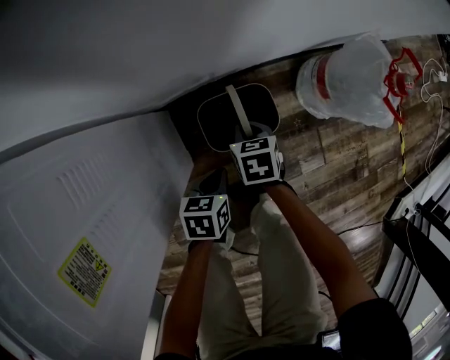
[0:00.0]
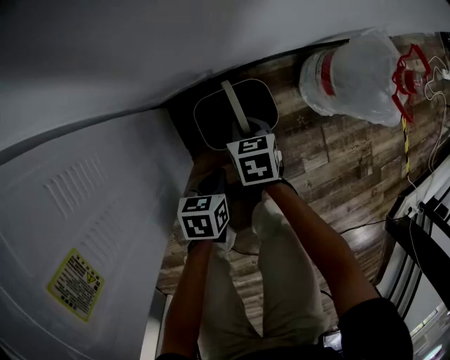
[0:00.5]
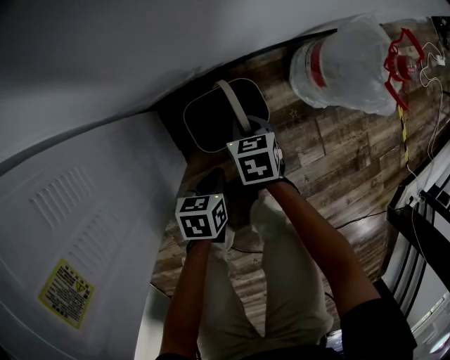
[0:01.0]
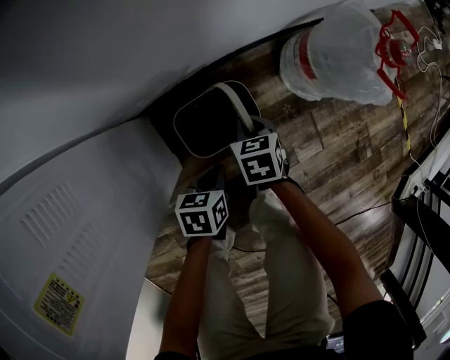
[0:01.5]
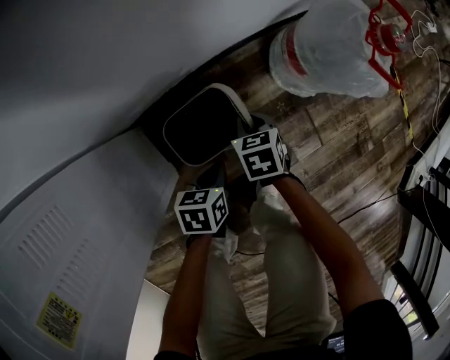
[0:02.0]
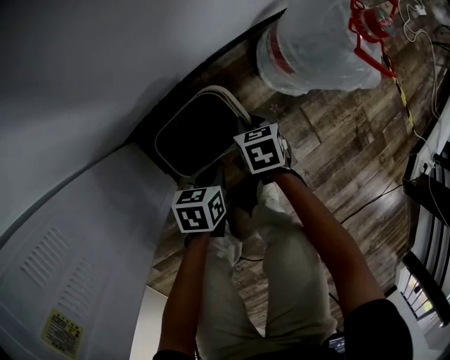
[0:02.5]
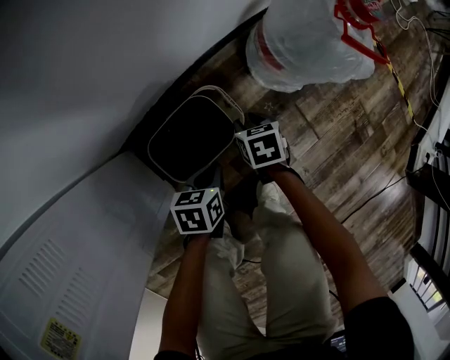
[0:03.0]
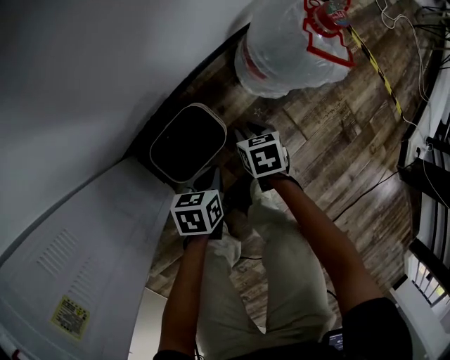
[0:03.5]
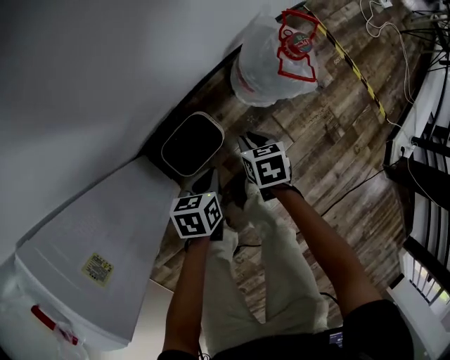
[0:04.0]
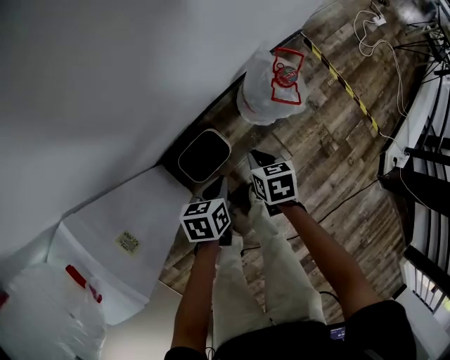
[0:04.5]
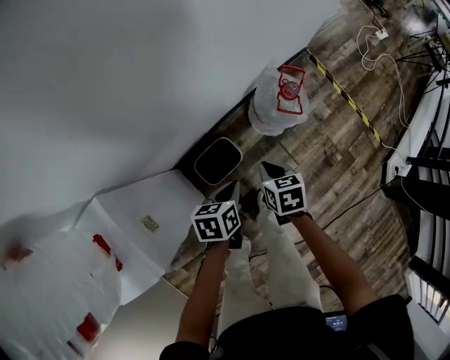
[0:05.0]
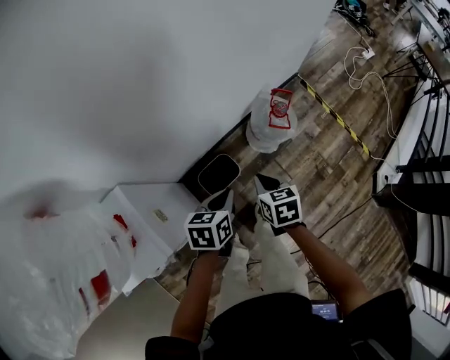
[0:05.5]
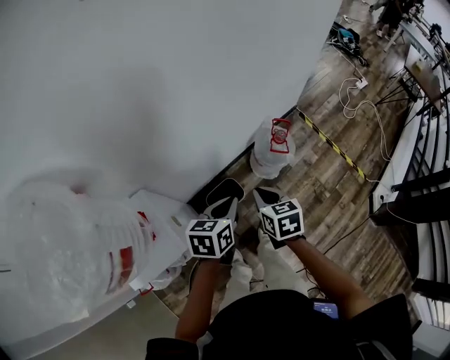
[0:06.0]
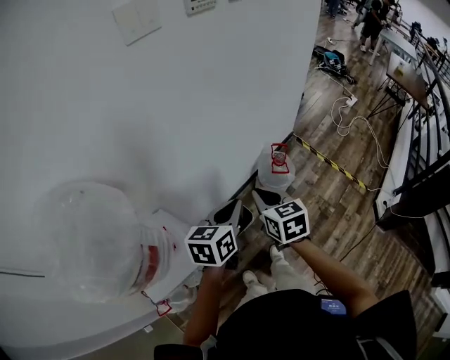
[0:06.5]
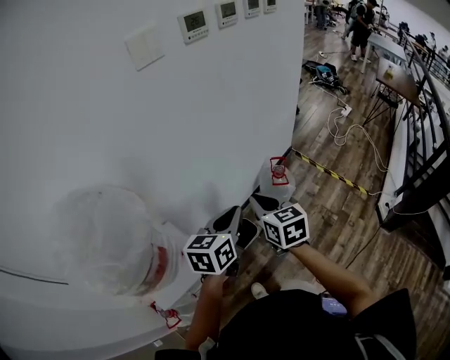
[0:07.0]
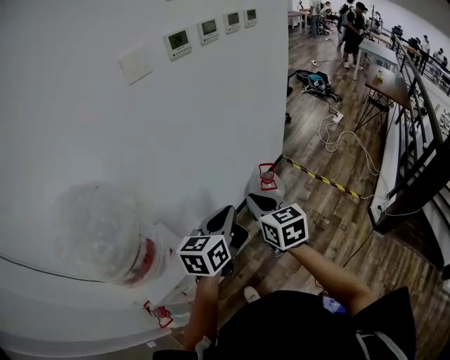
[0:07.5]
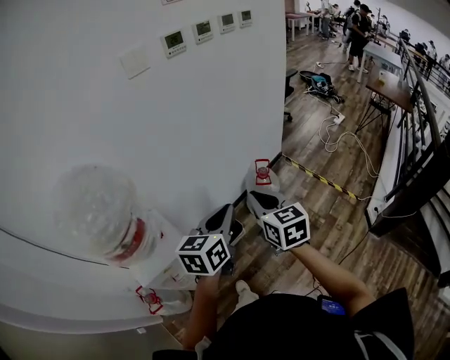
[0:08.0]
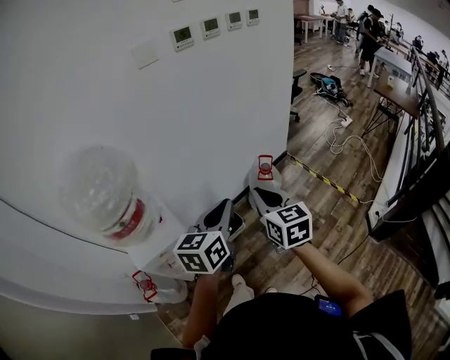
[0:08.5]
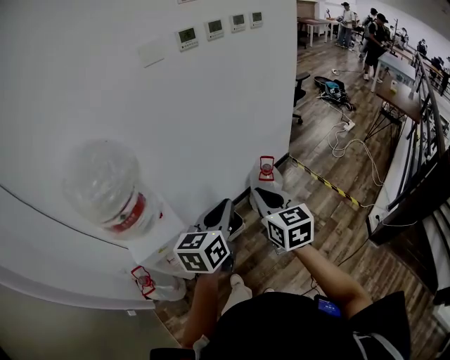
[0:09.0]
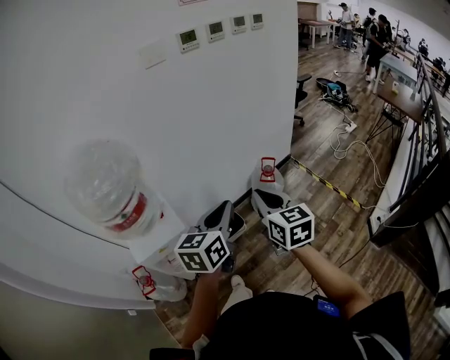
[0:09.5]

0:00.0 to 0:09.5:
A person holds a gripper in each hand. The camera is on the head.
0:00.0 to 0:02.0: The two grippers go roughly 10 cm to the right and downward.
0:02.0 to 0:04.0: The right gripper moves upward and to the right, roughly 20 cm, while the left gripper heads upward, covering roughly 15 cm.
0:04.0 to 0:05.5: Both grippers travel together upward, roughly 35 cm.
0:05.5 to 0:07.5: Both grippers move upward, some 35 cm. The left gripper changes its angle by some 30 degrees; the right gripper tips its fingers upward by roughly 30 degrees.
0:07.5 to 0:09.5: Both grippers travel together backward and to the right, about 15 cm.

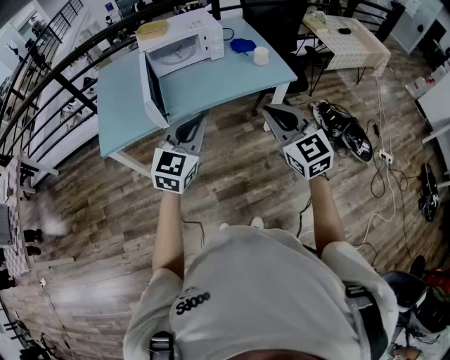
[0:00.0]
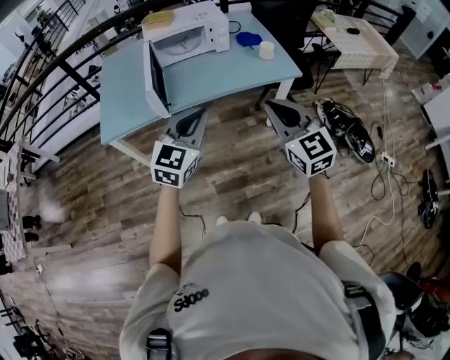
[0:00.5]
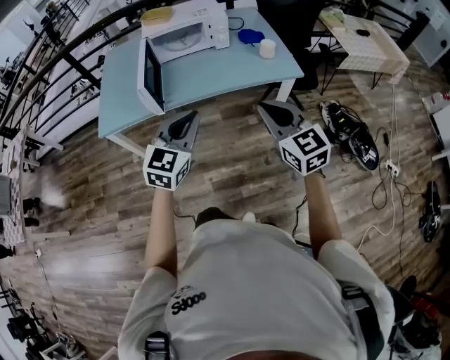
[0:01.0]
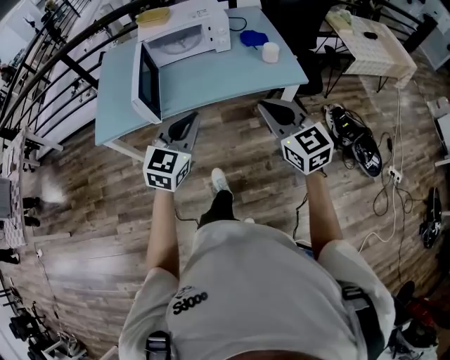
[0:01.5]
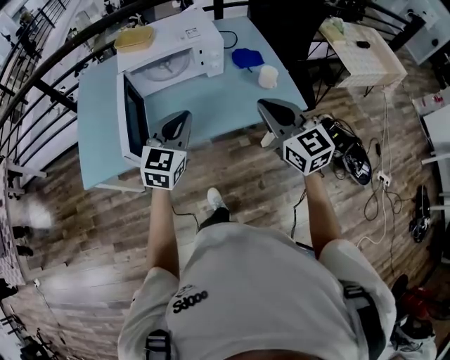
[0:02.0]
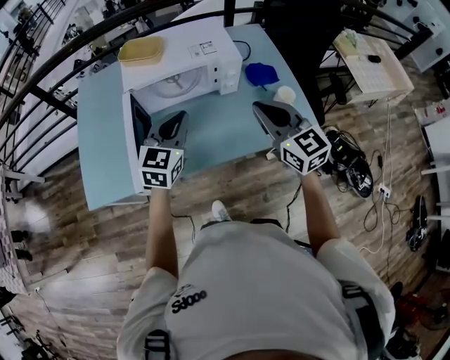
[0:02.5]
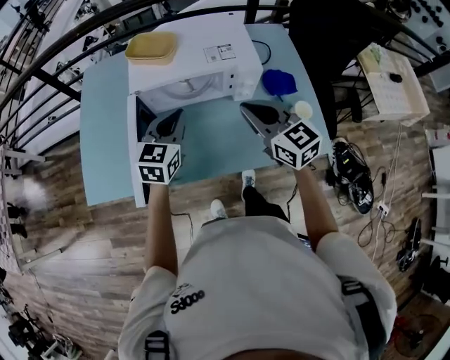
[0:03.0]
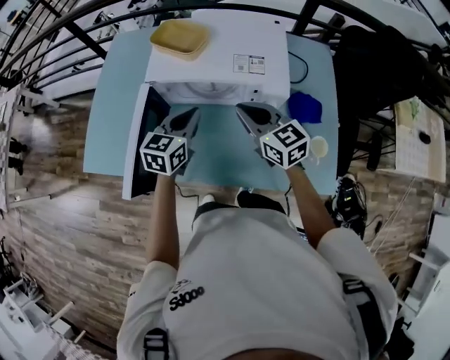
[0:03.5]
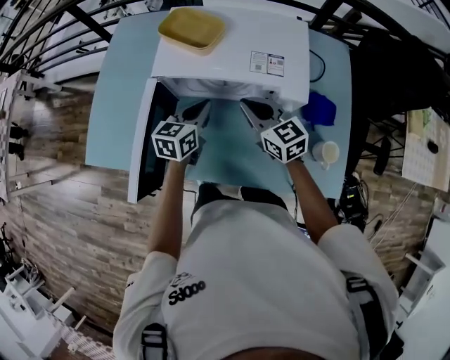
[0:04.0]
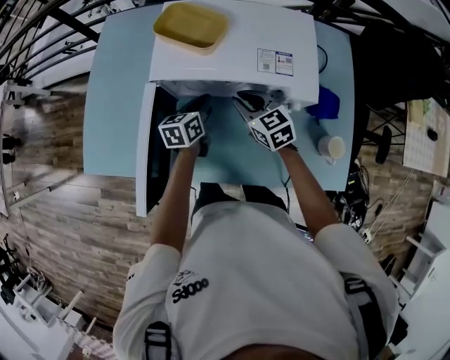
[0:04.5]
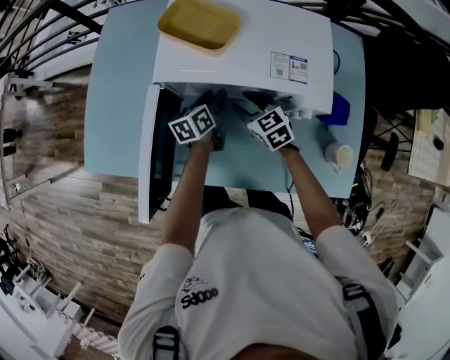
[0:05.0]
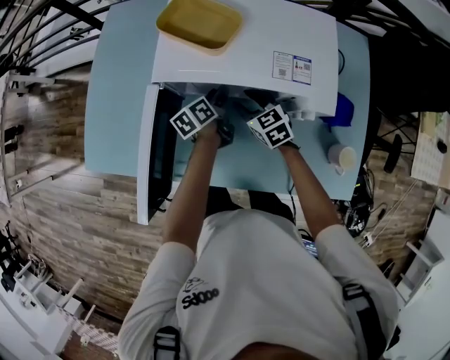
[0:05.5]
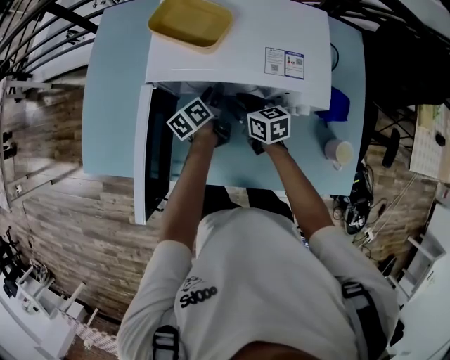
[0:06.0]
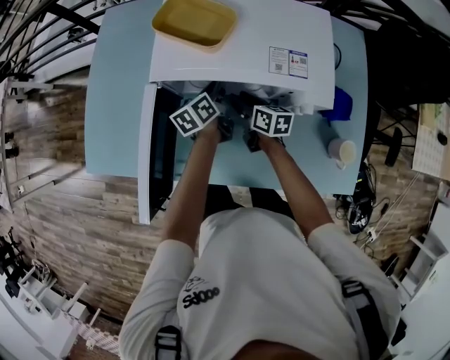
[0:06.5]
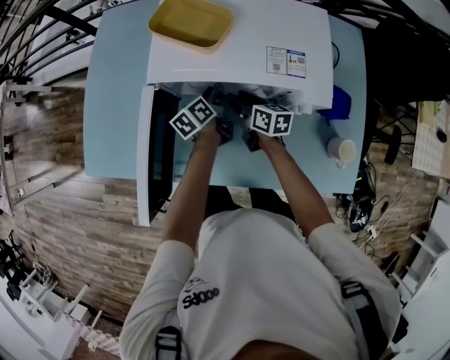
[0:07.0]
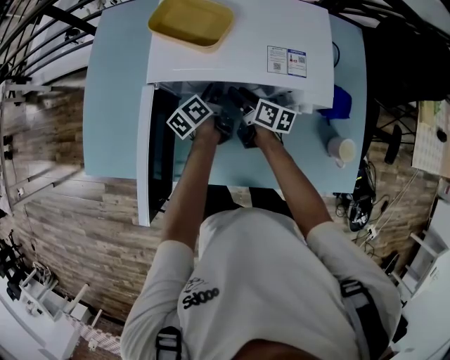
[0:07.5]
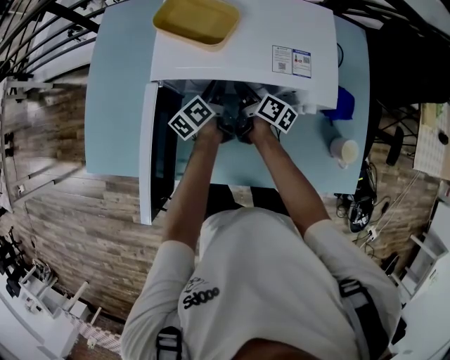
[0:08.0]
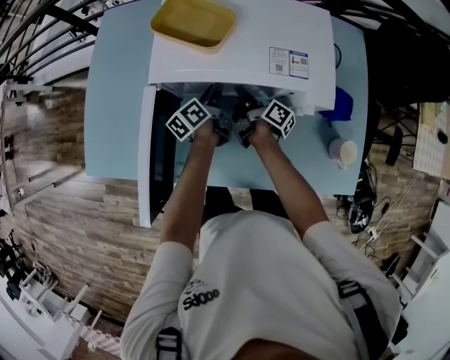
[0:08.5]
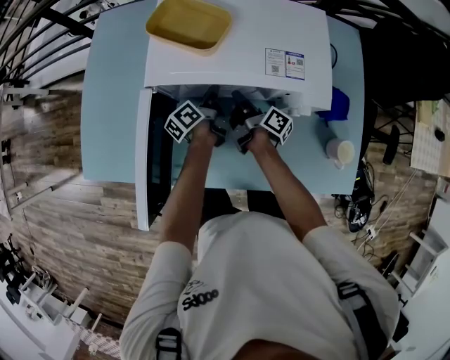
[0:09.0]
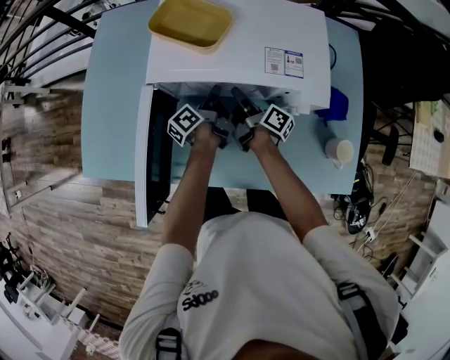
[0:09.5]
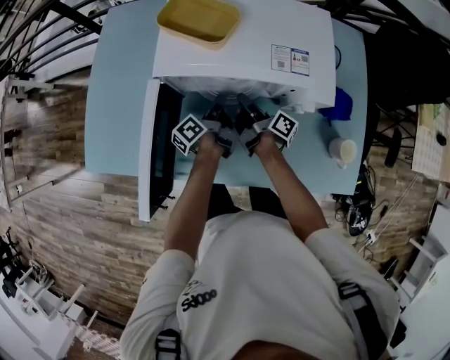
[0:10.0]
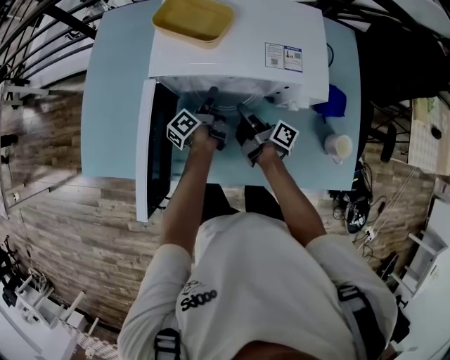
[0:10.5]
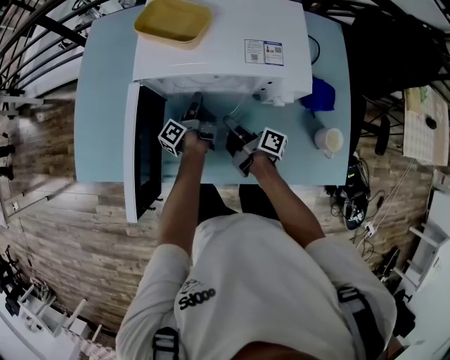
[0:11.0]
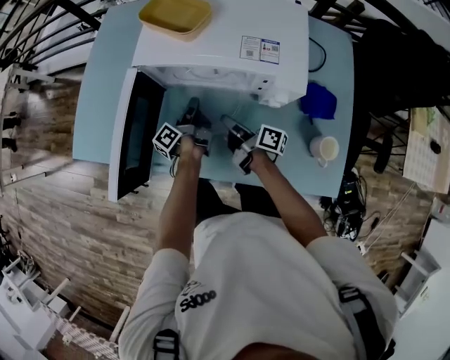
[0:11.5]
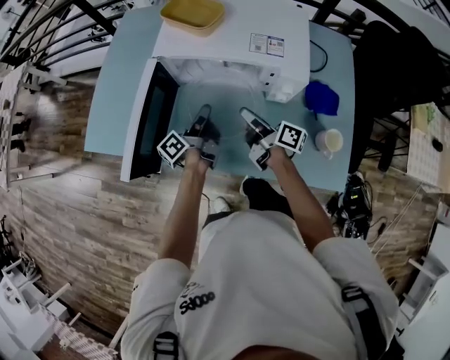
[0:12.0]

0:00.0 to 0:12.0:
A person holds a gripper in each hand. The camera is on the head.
0:00.0 to 0:02.0: The two grippers go about 30 cm forward.
0:02.0 to 0:04.0: The left gripper shifts about 35 cm forward and downward, and changes its angle by some 40 degrees; the right gripper heads forward, covering some 40 cm, and swivels roughly 30 degrees.
0:04.0 to 0:06.0: Both grippers travel together downward and forward, some 15 cm. The left gripper rotates around the line of its fingers by approximately 40 degrees, counterclockwise from behind, and opens up. Meanwhile the right gripper changes its angle by some 30 degrees, and opens.
0:06.0 to 0:08.0: The left gripper closes, then opens again. Meanwhile the right gripper rolls clockwise, seen from behind, by some 40 degrees.
0:08.0 to 0:10.0: The right gripper swivels about 20 degrees. The left gripper is displaced backward by roughly 5 cm, rotates about 20 degrees, and closes up.
0:10.0 to 0:12.0: Both grippers move backward and upward, some 15 cm. The left gripper opens, then closes once more. The right gripper rotates approximately 20 degrees.

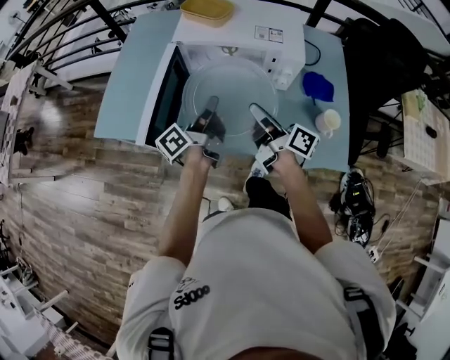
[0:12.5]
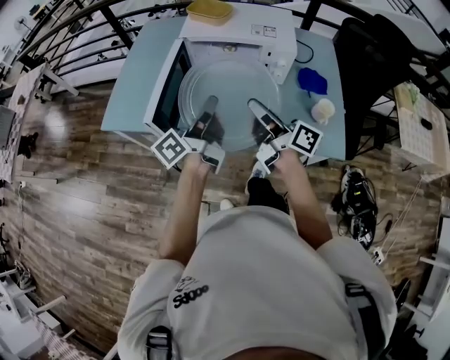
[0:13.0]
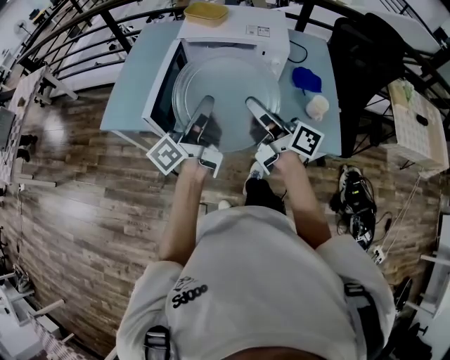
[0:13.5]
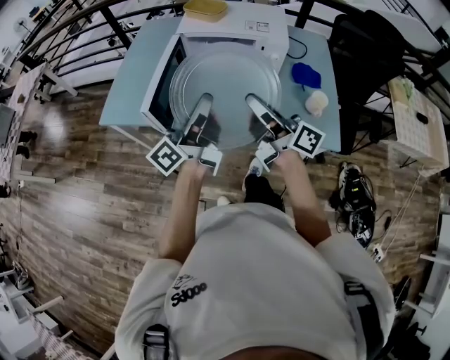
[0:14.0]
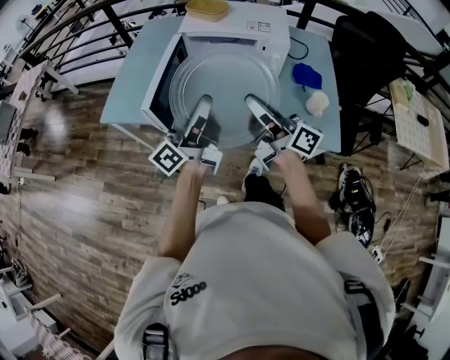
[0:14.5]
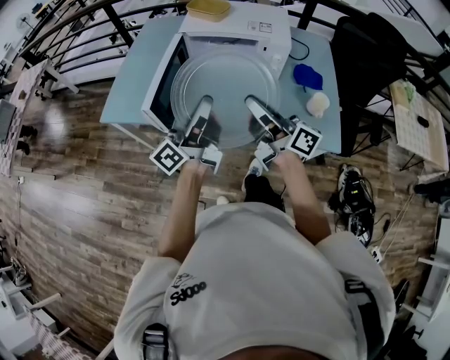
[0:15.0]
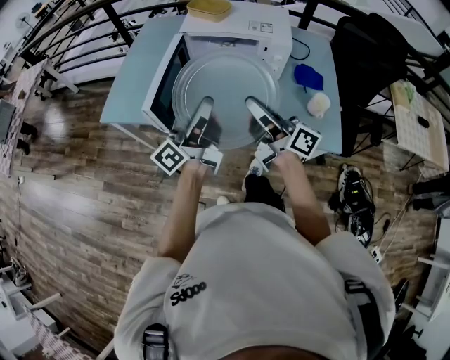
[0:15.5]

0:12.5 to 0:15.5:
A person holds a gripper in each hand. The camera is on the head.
0:12.5 to 0:14.0: Both grippers travel together backward and upward, roughly 20 cm. The right gripper changes its angle by some 20 degrees. Meanwhile the left gripper changes its angle by approximately 20 degrees.
0:14.0 to 0:15.5: The grippers stay close to where they were, moving slightly.

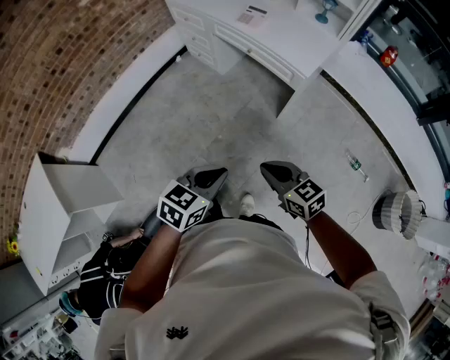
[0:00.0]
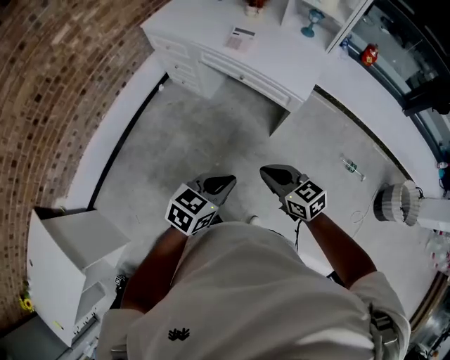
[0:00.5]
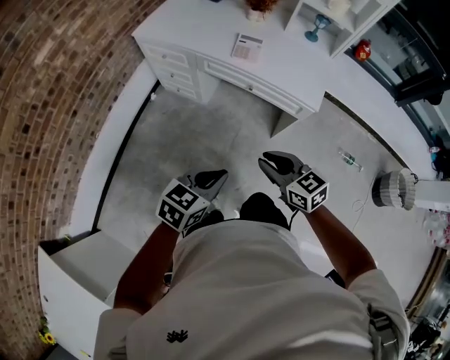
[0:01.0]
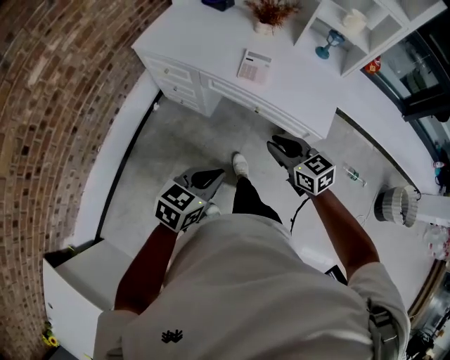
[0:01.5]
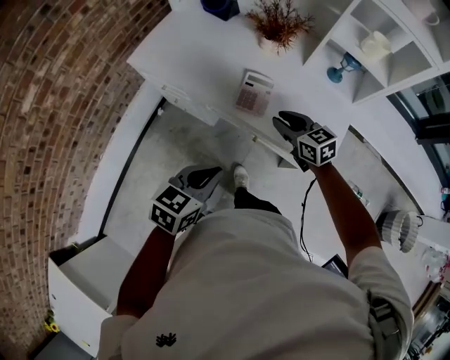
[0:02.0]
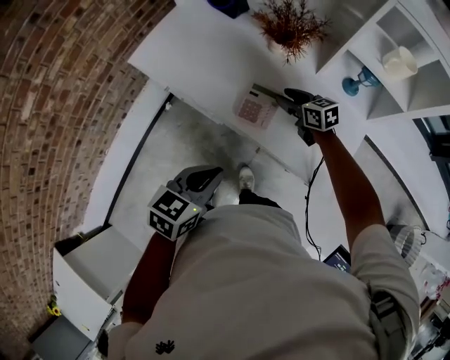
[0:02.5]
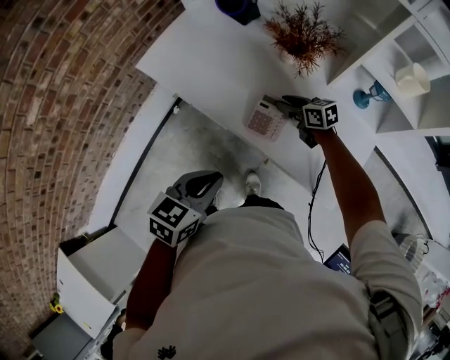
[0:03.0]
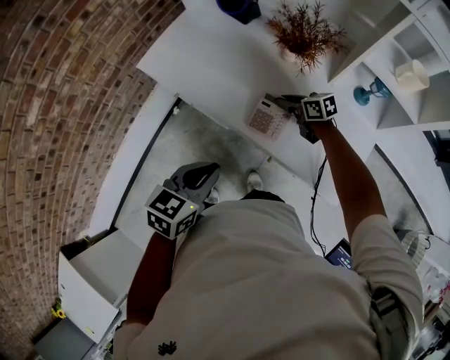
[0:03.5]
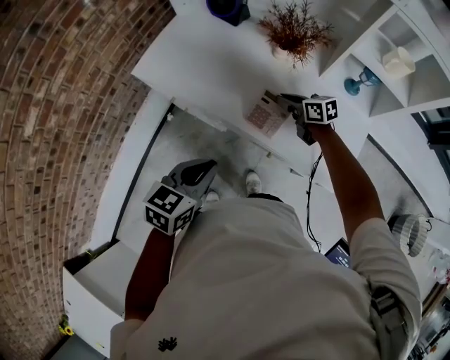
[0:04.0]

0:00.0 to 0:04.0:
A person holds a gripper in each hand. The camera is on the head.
0:00.0 to 0:02.0: The two grippers travel together, forward, some 60 cm. The right gripper opens.
0:02.0 to 0:04.0: The left gripper goes approximately 10 cm forward; the right gripper heads forward and downward, covering approximately 20 cm, and rotates roughly 20 degrees.
